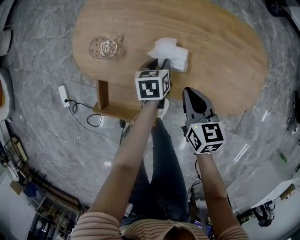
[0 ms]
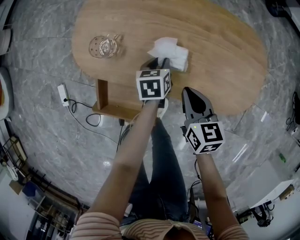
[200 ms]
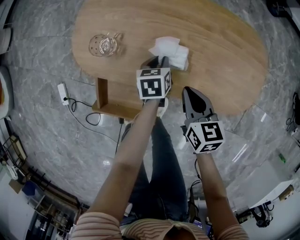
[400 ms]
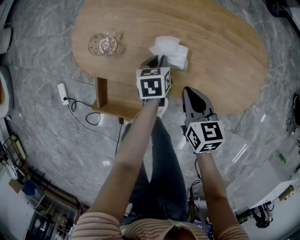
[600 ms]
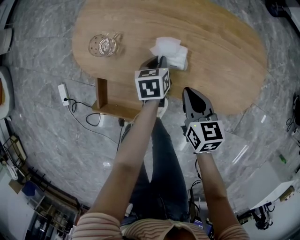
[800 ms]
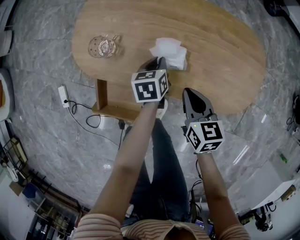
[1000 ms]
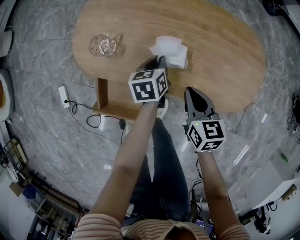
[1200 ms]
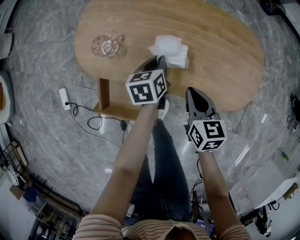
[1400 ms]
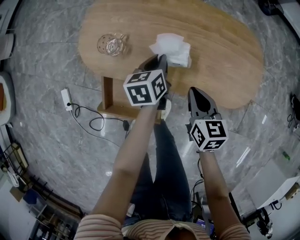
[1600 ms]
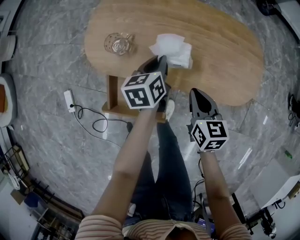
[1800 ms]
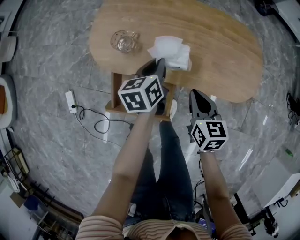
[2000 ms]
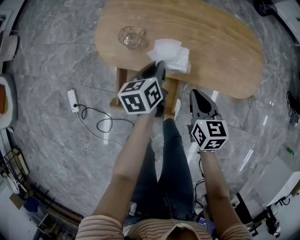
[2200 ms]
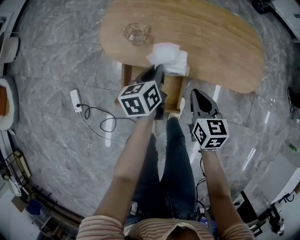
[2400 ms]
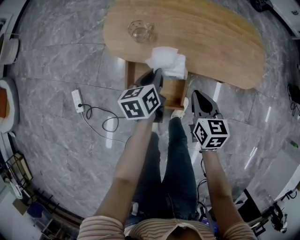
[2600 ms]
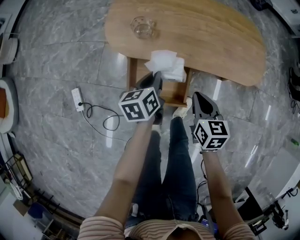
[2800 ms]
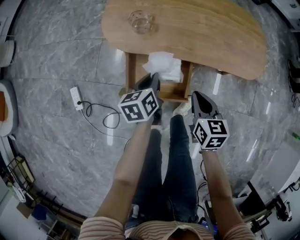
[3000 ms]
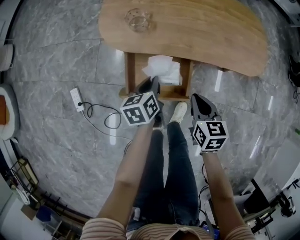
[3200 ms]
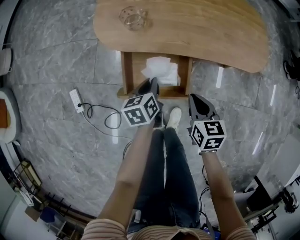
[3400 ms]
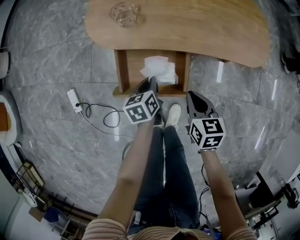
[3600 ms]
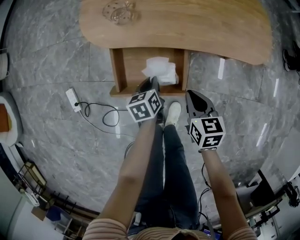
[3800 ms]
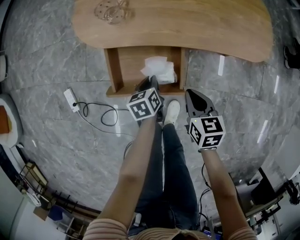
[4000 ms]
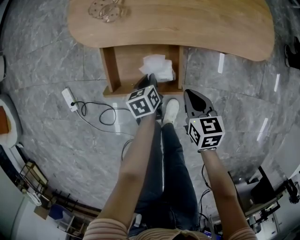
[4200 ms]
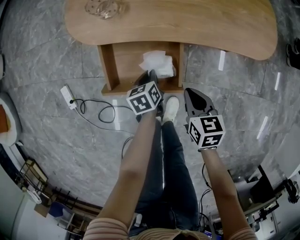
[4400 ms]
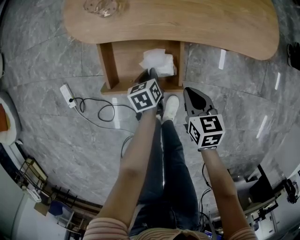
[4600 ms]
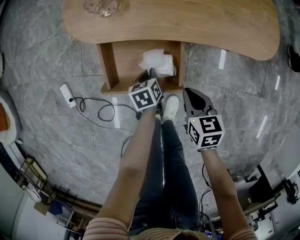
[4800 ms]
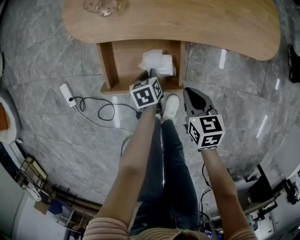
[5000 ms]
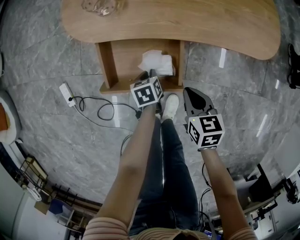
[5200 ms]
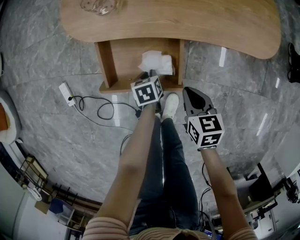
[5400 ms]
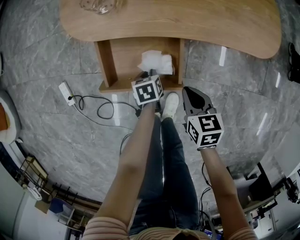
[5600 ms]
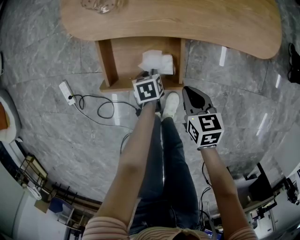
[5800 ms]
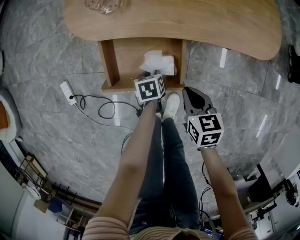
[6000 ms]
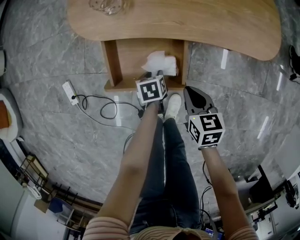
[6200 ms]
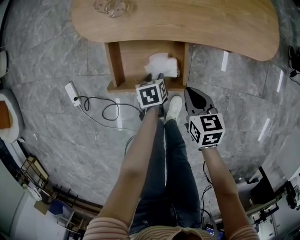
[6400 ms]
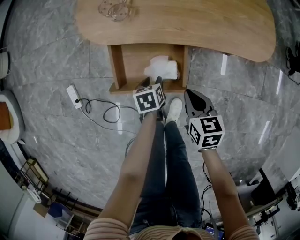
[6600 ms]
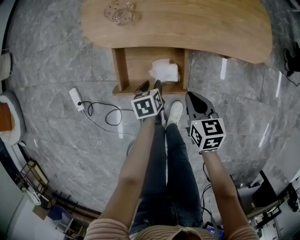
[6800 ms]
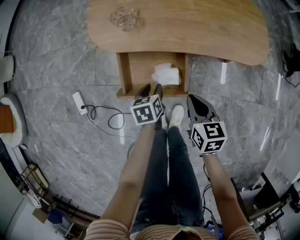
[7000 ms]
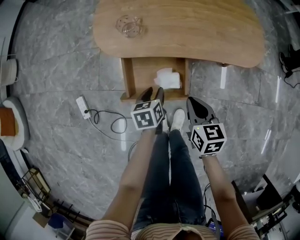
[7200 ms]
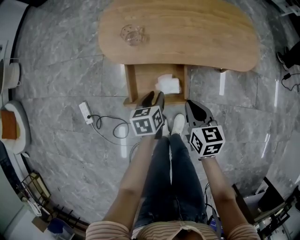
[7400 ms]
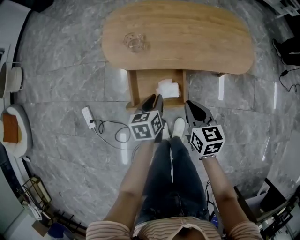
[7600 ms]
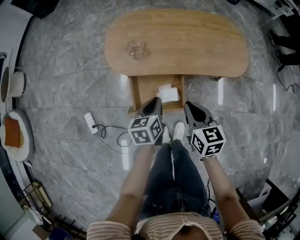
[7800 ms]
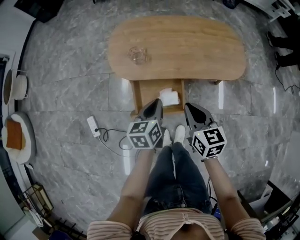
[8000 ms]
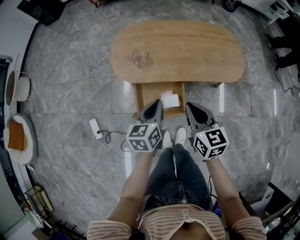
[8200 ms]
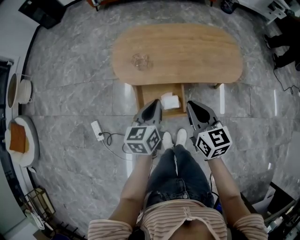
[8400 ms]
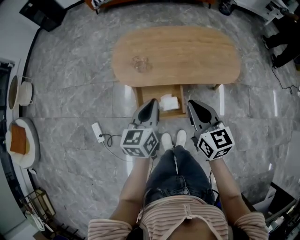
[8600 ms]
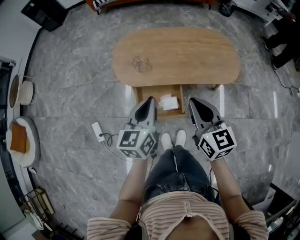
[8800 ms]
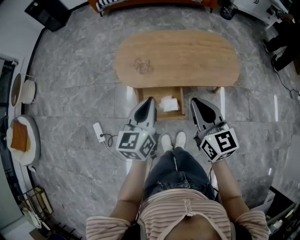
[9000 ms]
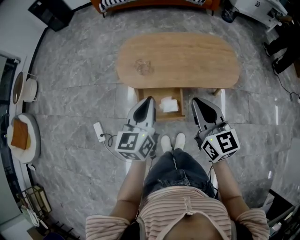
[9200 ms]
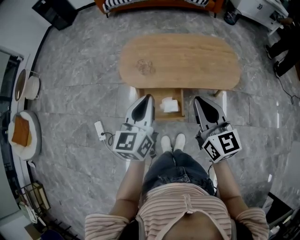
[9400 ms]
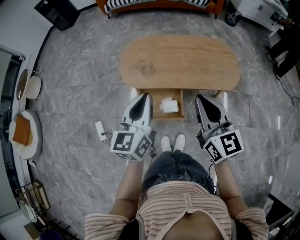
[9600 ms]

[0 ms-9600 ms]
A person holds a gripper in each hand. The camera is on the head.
0 ms to 1600 ms: The left gripper goes approximately 10 cm upward, and closes up.
1600 ms to 3200 ms: Both grippers move backward and to the left, roughly 25 cm.
3200 ms to 4800 ms: The left gripper shifts some 20 cm downward; the right gripper is displaced downward by approximately 10 cm.
4800 ms to 6400 ms: The left gripper opens up.
6400 ms to 8000 ms: Both grippers travel together upward, some 30 cm. The right gripper changes its angle by roughly 20 degrees; the left gripper tilts its fingers roughly 30 degrees upward, and closes.
8000 ms to 9600 ms: The two grippers go roughly 20 cm upward. The left gripper rotates some 30 degrees. The right gripper turns by some 30 degrees.

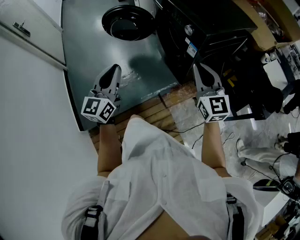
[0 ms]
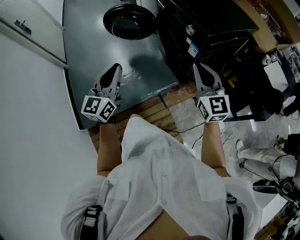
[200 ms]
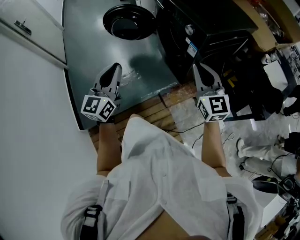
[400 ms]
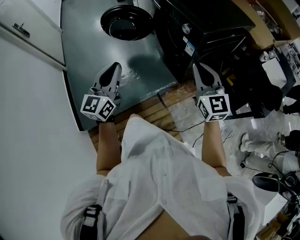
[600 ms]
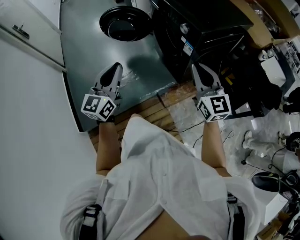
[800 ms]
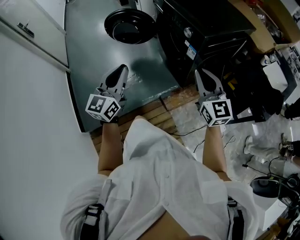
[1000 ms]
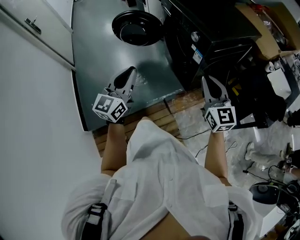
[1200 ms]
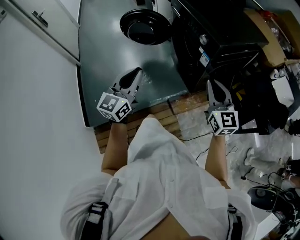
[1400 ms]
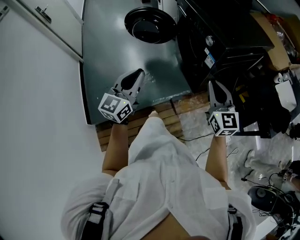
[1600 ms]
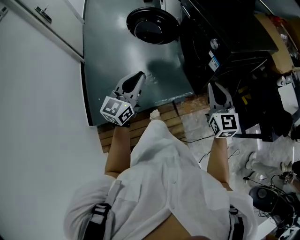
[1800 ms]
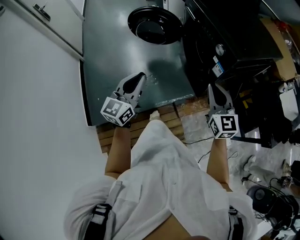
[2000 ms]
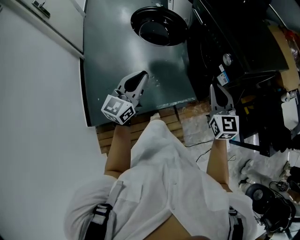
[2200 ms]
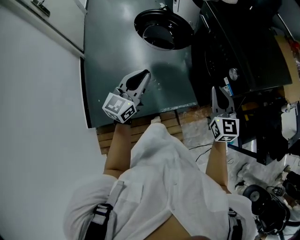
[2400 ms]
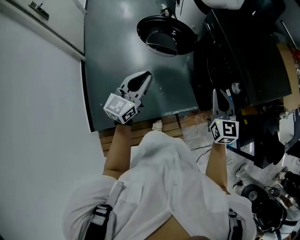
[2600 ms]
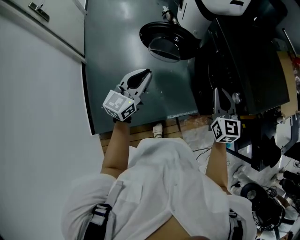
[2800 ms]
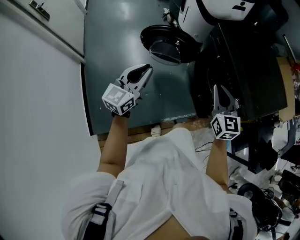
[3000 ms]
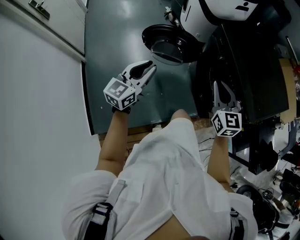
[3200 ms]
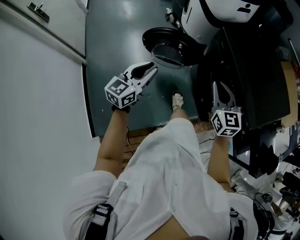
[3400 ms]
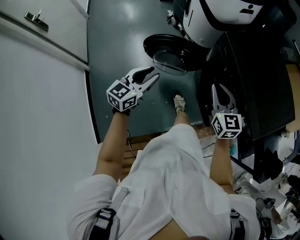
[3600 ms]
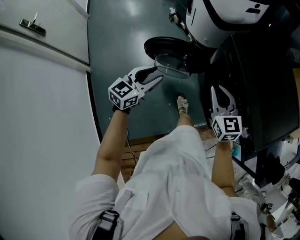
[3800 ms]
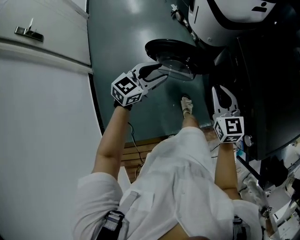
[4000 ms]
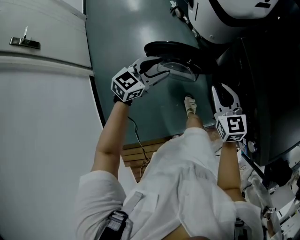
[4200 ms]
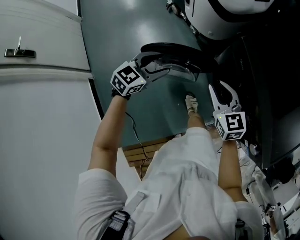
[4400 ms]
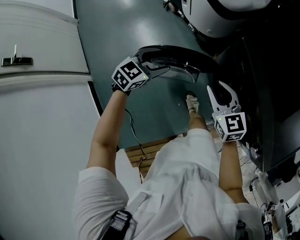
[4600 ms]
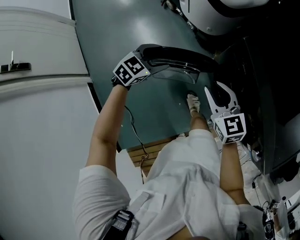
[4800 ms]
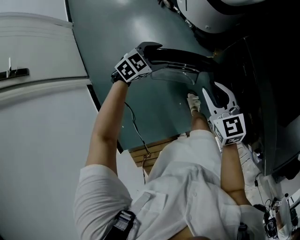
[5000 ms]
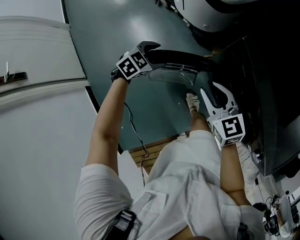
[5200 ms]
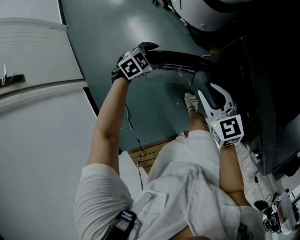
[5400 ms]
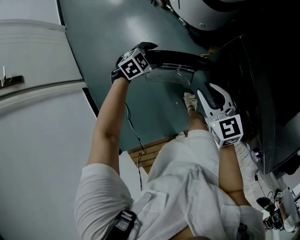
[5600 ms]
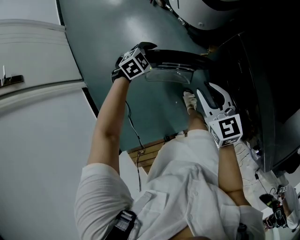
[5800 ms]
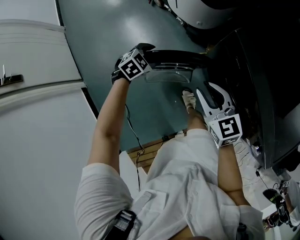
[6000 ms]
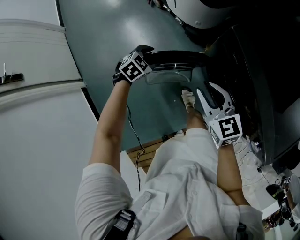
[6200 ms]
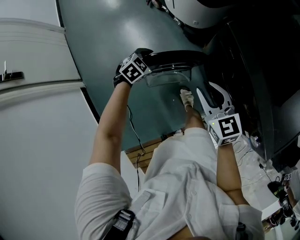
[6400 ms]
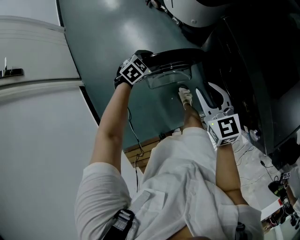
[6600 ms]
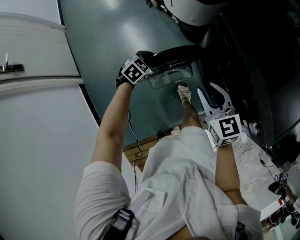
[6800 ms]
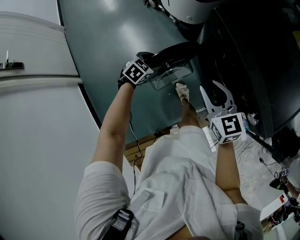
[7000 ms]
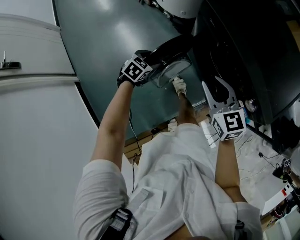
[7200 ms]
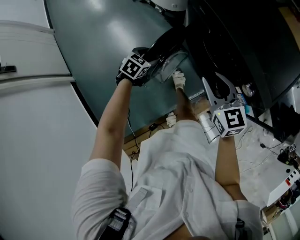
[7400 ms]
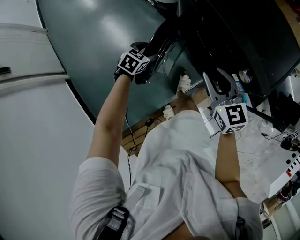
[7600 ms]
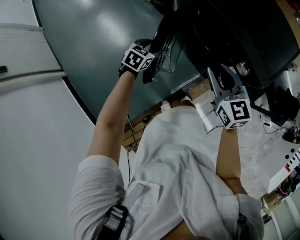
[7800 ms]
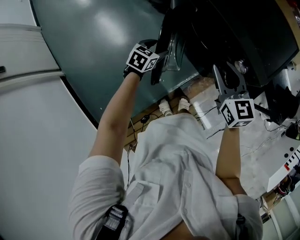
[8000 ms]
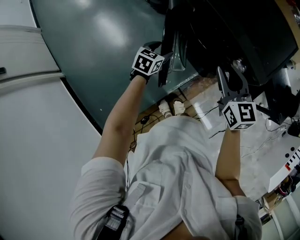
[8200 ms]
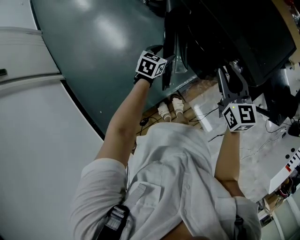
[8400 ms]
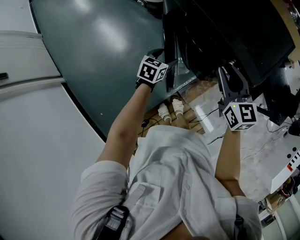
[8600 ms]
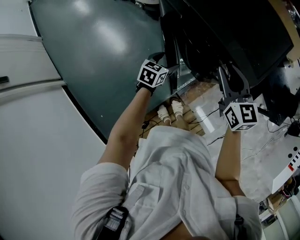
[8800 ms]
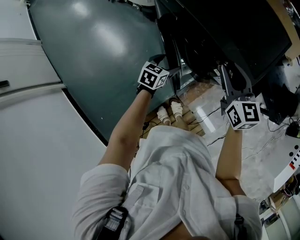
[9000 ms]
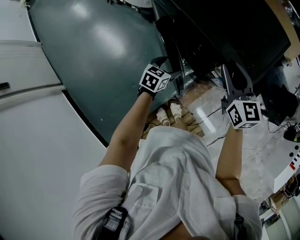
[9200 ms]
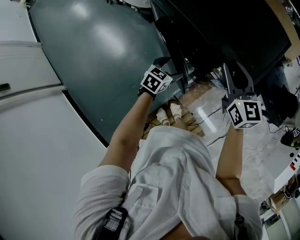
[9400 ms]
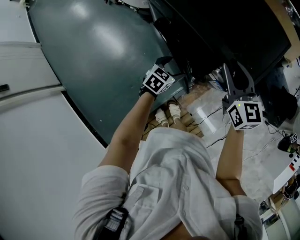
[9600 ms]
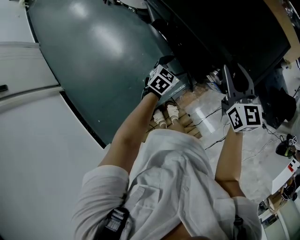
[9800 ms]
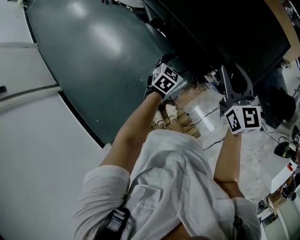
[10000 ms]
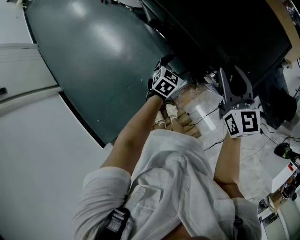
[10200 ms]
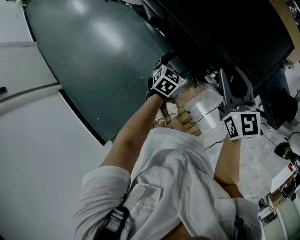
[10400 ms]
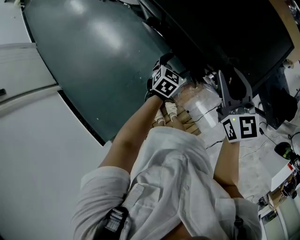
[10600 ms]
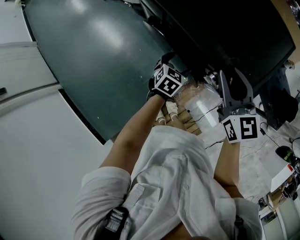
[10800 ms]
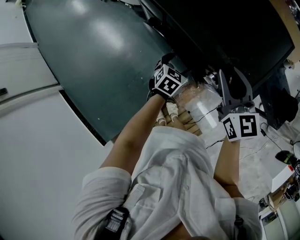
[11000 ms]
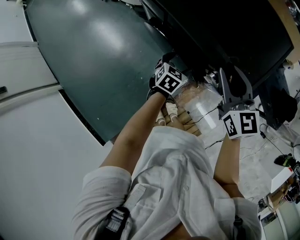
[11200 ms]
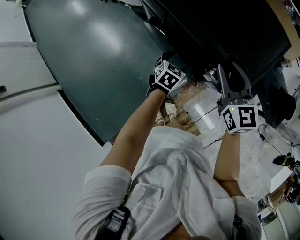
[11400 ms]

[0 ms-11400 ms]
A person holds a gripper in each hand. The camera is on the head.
0 ms to 1400 ms: The grippers make only small movements.
1400 ms to 2800 ms: The two grippers go approximately 35 cm forward and to the left.
2800 ms to 4200 ms: The right gripper goes roughly 25 cm forward and to the left, while the left gripper is displaced forward by approximately 30 cm, swivels about 30 degrees, and opens its fingers.
4200 ms to 5600 ms: The right gripper shifts about 10 cm downward and forward; the left gripper is displaced downward and forward by some 25 cm, and points its fingers about 30 degrees further downward.
5600 ms to 7200 ms: The left gripper is displaced backward and to the right by some 20 cm; the right gripper is displaced backward, to the right and upward by roughly 20 cm.
7200 ms to 8600 ms: The grippers both shift to the right by some 20 cm. The left gripper swivels about 20 degrees.
8600 ms to 10000 ms: The right gripper is displaced forward and to the right by about 10 cm. Meanwhile the left gripper travels to the right and forward by approximately 15 cm.
10000 ms to 11400 ms: The grippers move only a little.

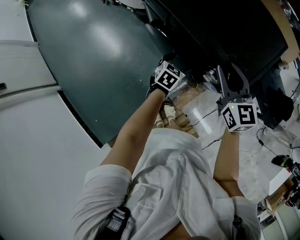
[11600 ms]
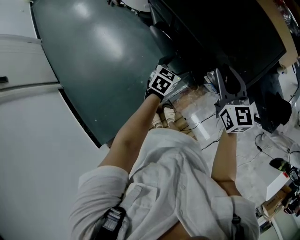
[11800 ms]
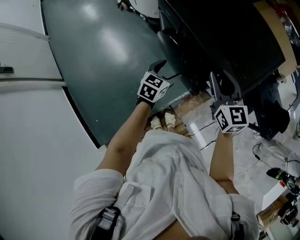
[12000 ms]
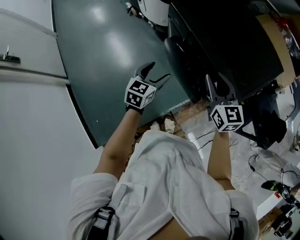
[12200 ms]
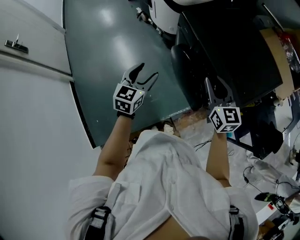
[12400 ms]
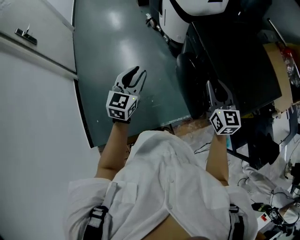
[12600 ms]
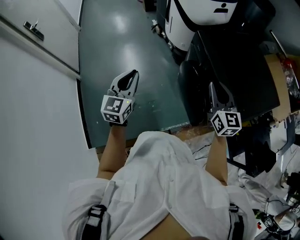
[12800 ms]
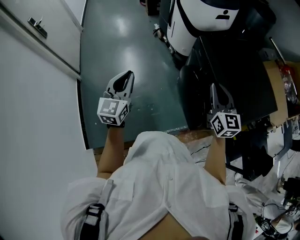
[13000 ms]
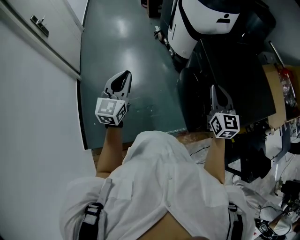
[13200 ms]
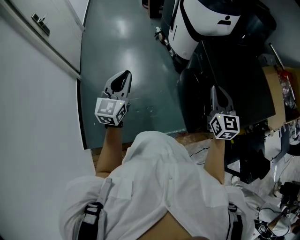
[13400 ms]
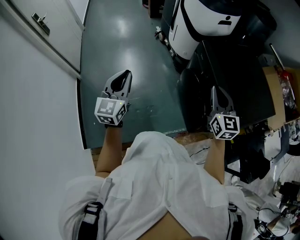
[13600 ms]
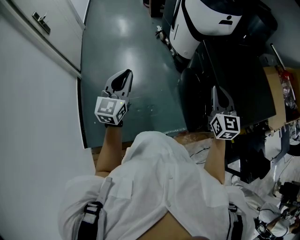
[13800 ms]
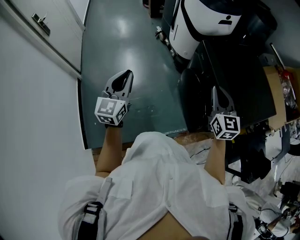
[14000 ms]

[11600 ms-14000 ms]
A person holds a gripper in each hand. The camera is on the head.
11600 ms to 12800 ms: The right gripper moves roughly 15 cm, while the left gripper changes place by some 50 cm, points its fingers some 40 degrees further upward, and closes up.
12800 ms to 14000 ms: The left gripper travels to the left by about 5 cm.
